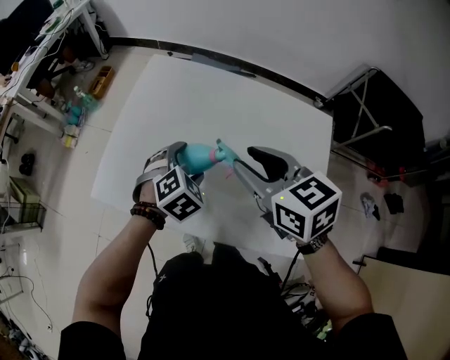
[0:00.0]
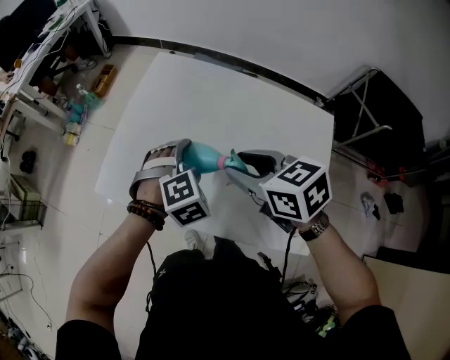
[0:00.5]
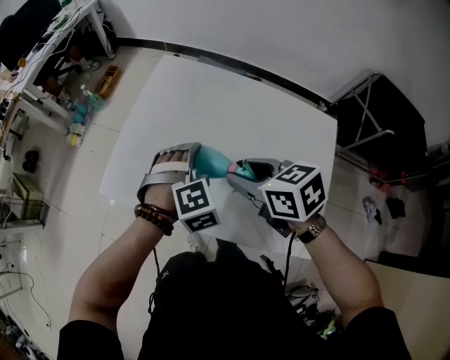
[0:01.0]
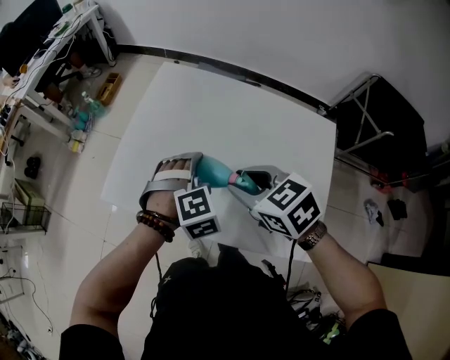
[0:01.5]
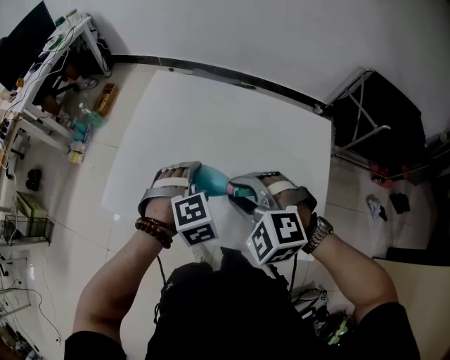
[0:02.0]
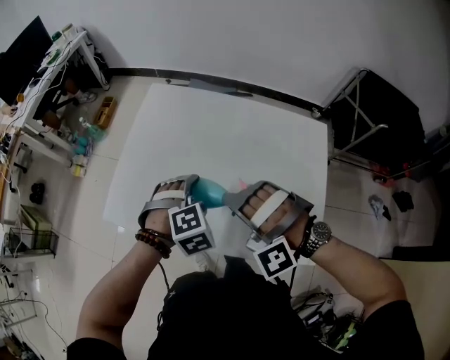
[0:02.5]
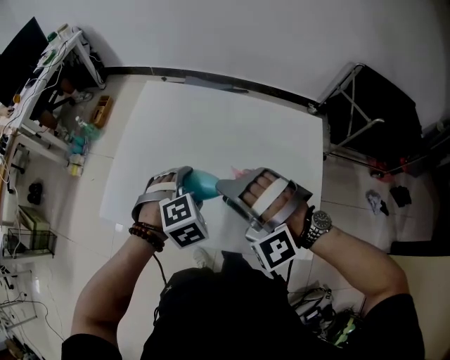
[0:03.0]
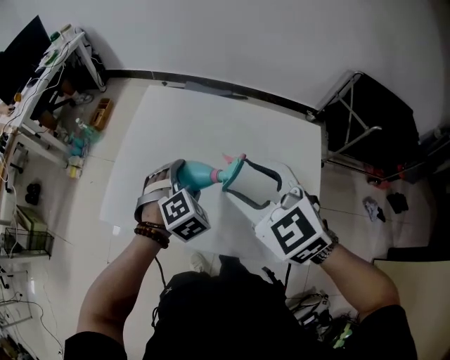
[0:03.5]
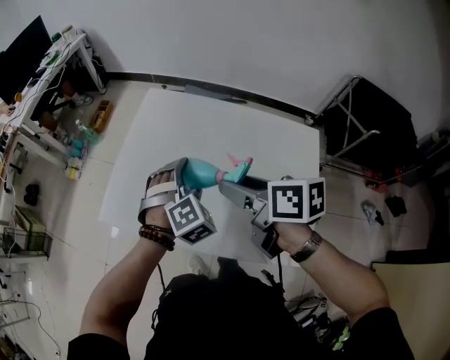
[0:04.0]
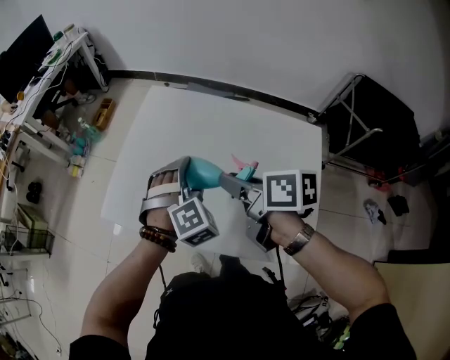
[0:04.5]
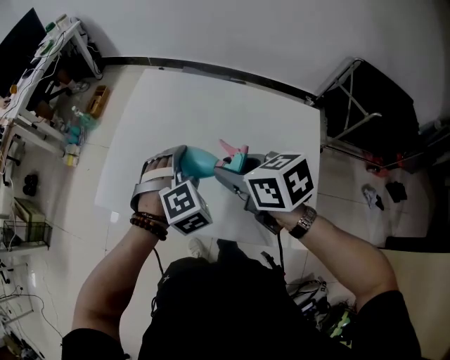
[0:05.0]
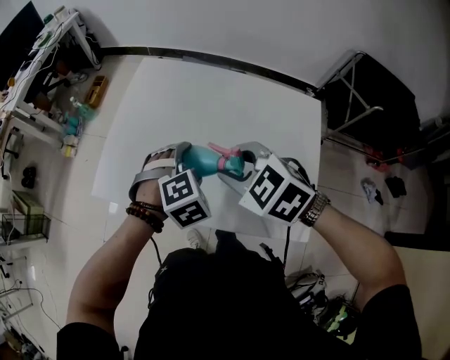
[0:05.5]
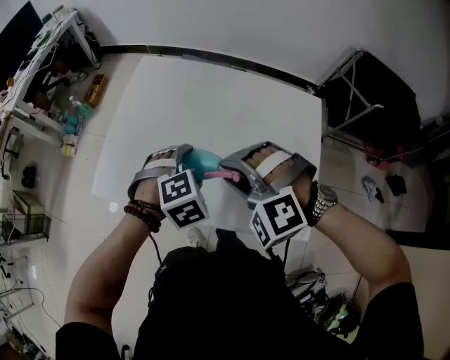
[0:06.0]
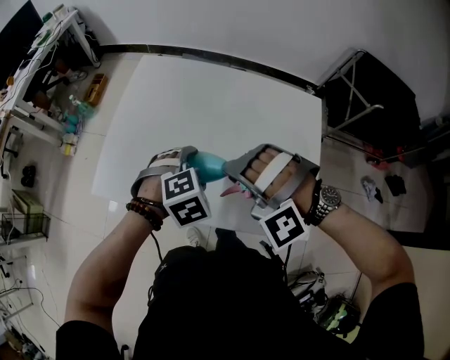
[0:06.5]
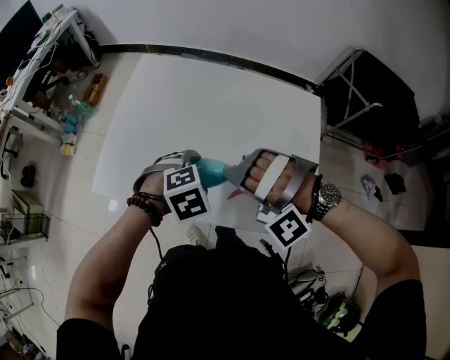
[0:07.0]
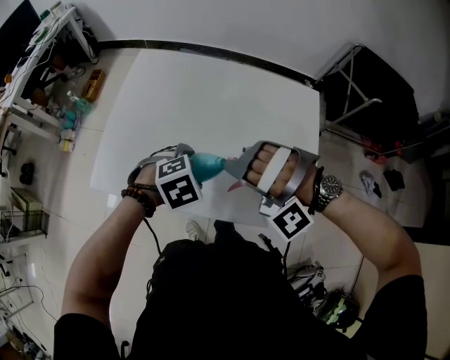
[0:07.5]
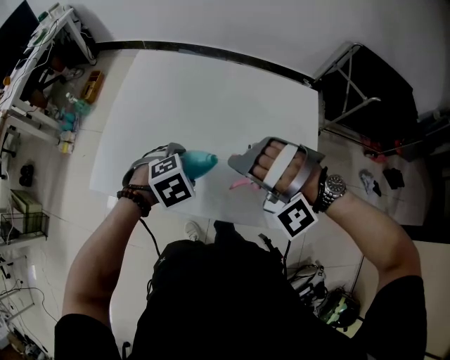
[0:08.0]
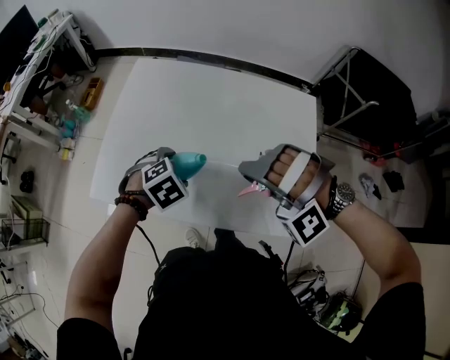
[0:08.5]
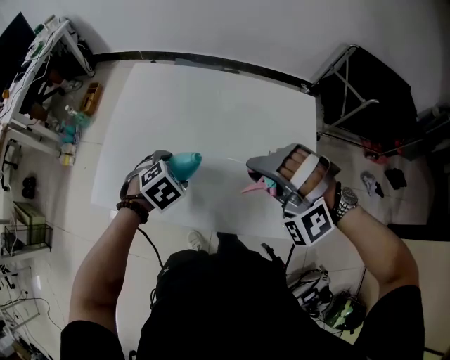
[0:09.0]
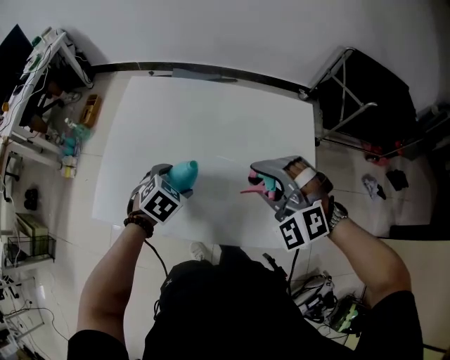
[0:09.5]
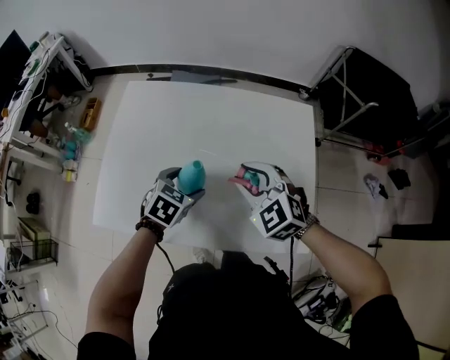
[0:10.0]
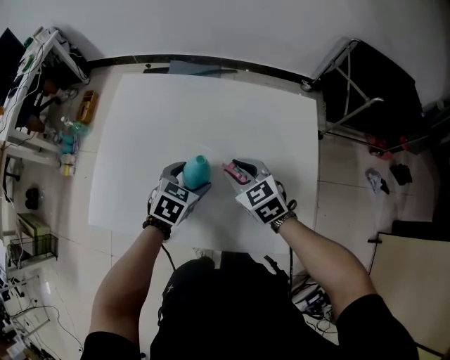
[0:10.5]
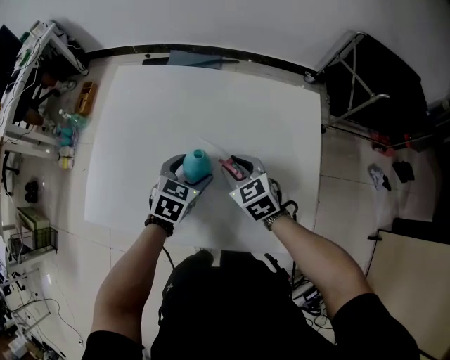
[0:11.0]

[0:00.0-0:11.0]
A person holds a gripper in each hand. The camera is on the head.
0:00.0 to 0:02.0: The right gripper travels to the left, downward and backward by approximately 10 cm, and twists about 60 degrees counterclockwise, seen from behind; the left gripper rotates about 20 degrees.
0:02.0 to 0:03.5: The right gripper shifts about 10 cm upward, swivels roughly 40 degrees, and opens.
0:03.5 to 0:05.5: The left gripper moves about 5 cm, while the right gripper travels downward by about 5 cm, changes its angle by approximately 20 degrees, and closes its fingers.
0:05.5 to 0:07.5: The right gripper moves some 5 cm, and rotates around the line of its fingers by approximately 80 degrees, counterclockwise from behind. Meanwhile the left gripper ends up approximately 5 cm from where it was, and turns by some 20 degrees.
0:07.5 to 0:09.0: The right gripper changes place by about 5 cm, and rotates some 20 degrees. The left gripper shifts some 5 cm to the left.
0:09.0 to 0:11.0: The right gripper is displaced downward and forward by approximately 20 cm, and rolls clockwise, seen from behind, by about 90 degrees, while the left gripper moves to the right and forward, about 10 cm, and changes its angle by roughly 30 degrees.

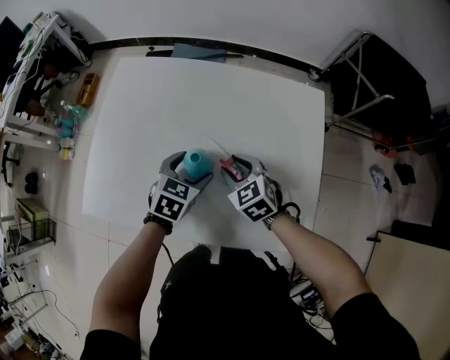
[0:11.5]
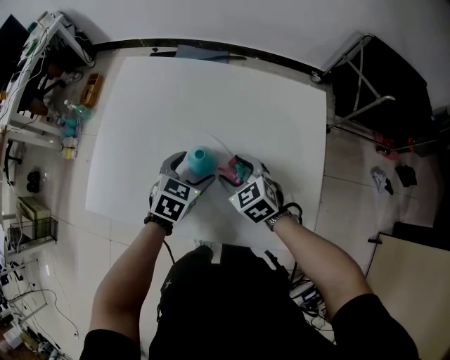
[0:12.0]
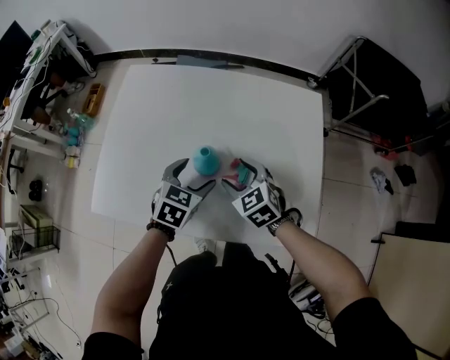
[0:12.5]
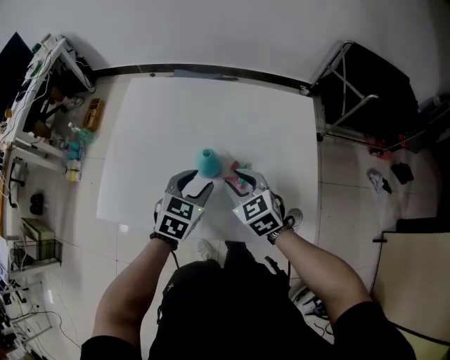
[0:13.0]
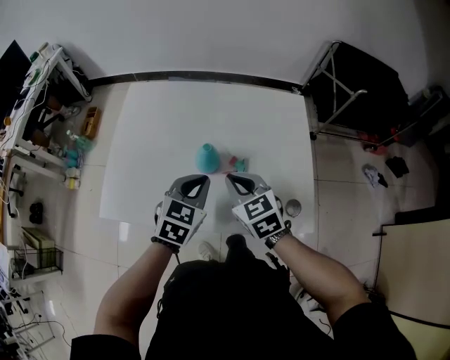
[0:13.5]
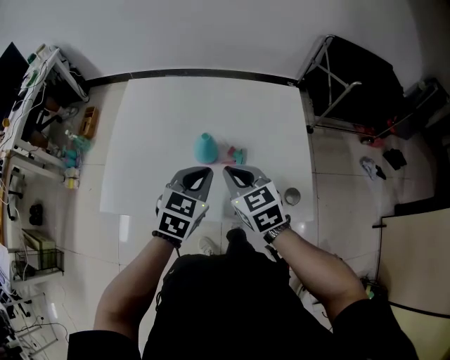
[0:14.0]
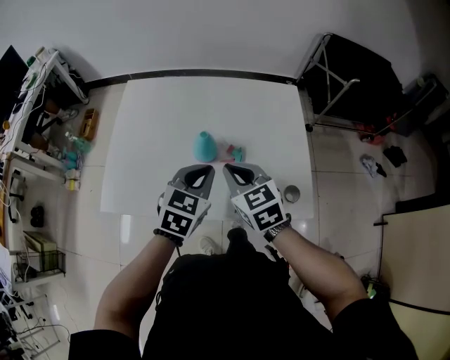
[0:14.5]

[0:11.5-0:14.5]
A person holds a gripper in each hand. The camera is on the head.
0:11.5 to 0:13.0: The two grippers go about 5 cm upward. The left gripper closes its fingers. The right gripper opens, then closes once more.
0:13.0 to 0:14.5: The grippers both shift upward by about 5 cm. The right gripper closes, while the left gripper closes.

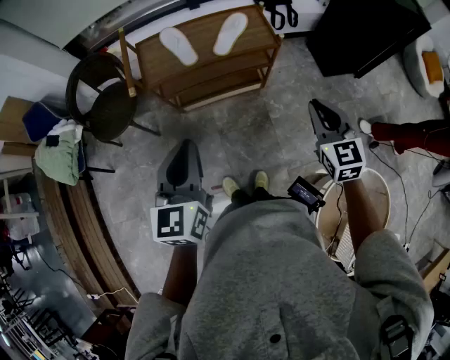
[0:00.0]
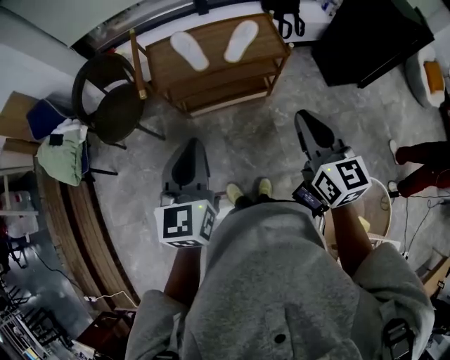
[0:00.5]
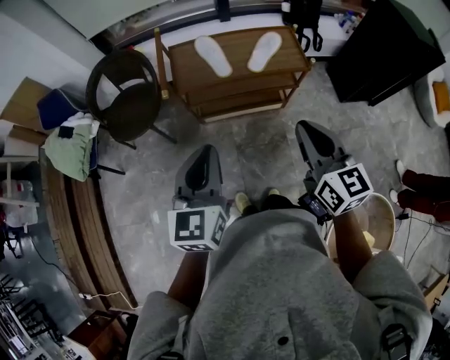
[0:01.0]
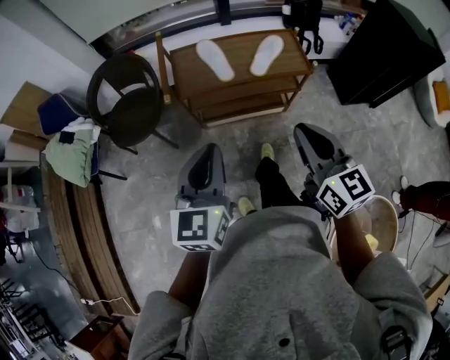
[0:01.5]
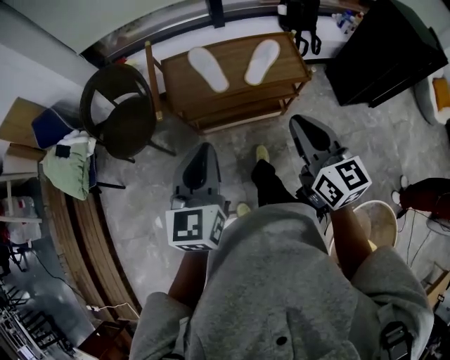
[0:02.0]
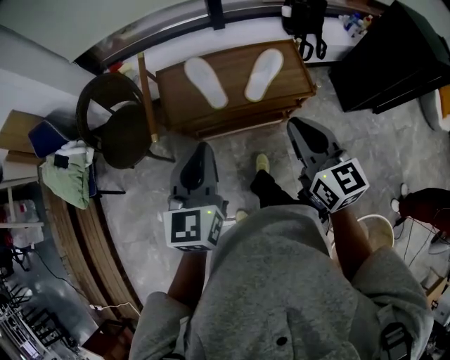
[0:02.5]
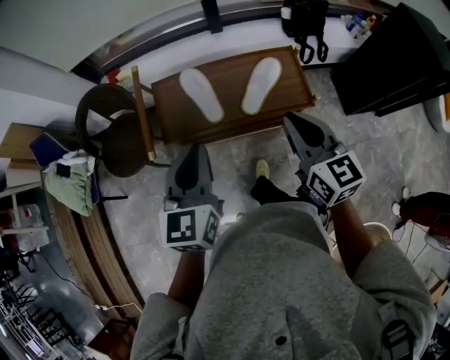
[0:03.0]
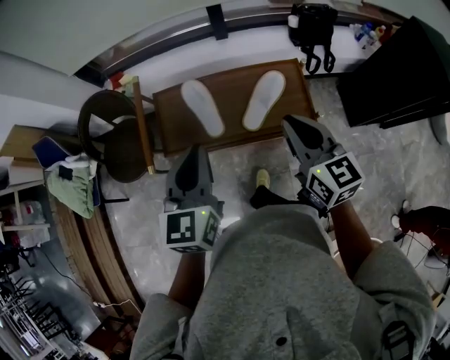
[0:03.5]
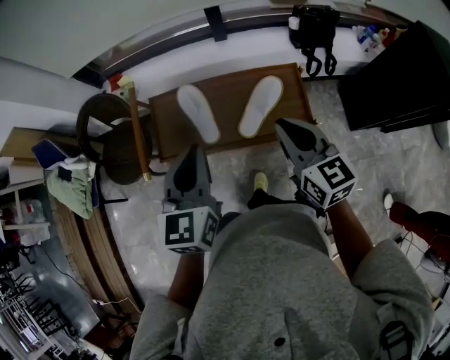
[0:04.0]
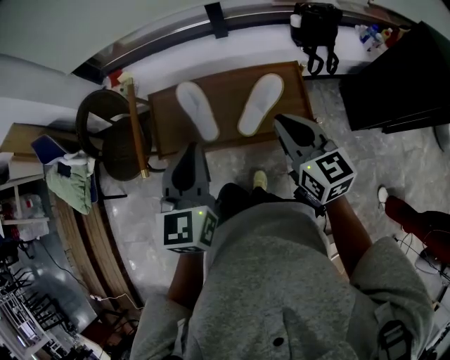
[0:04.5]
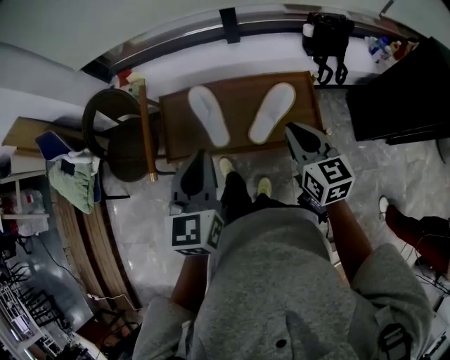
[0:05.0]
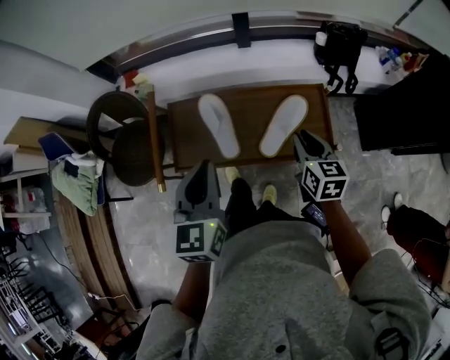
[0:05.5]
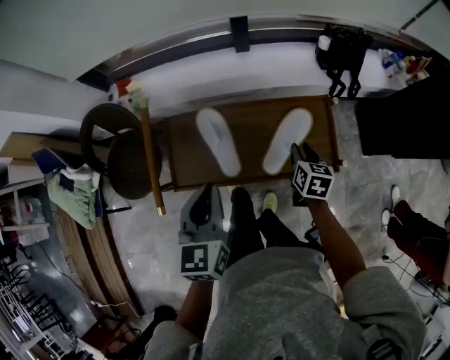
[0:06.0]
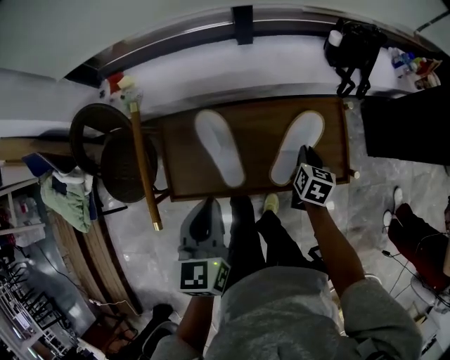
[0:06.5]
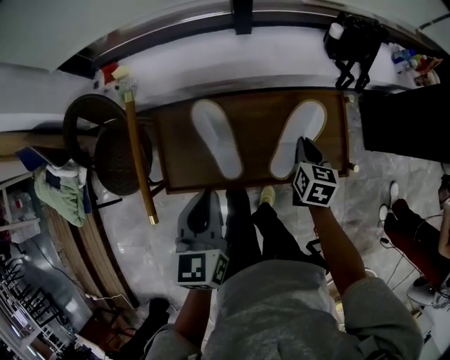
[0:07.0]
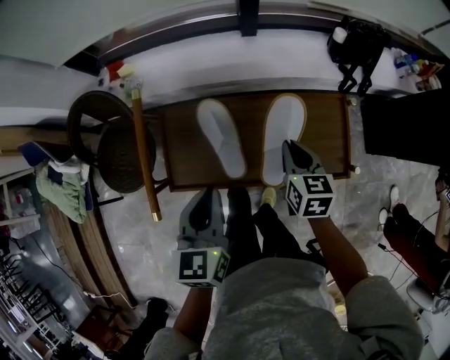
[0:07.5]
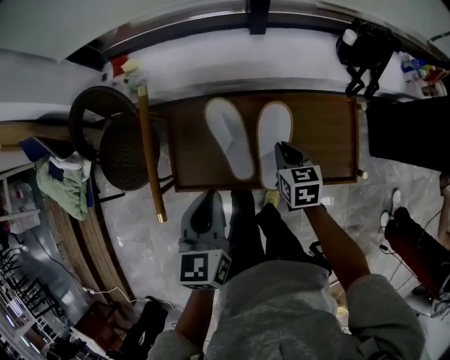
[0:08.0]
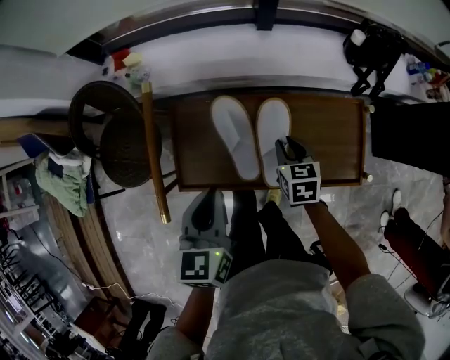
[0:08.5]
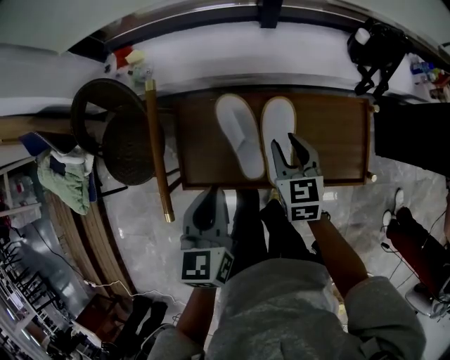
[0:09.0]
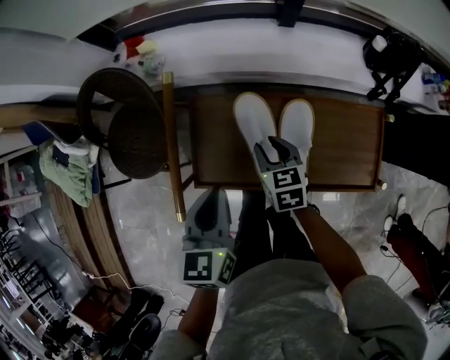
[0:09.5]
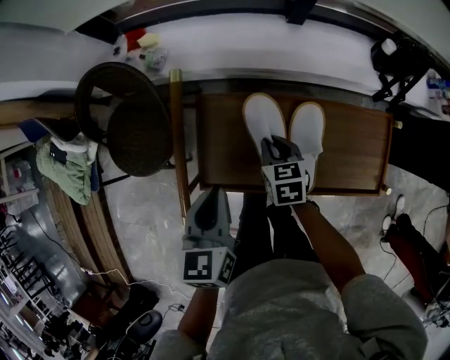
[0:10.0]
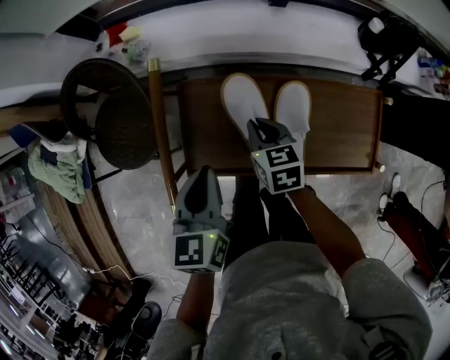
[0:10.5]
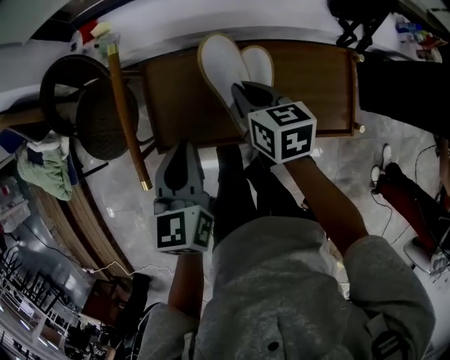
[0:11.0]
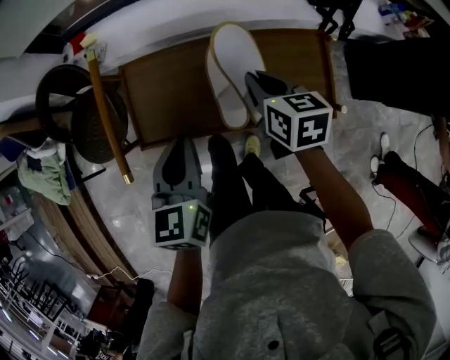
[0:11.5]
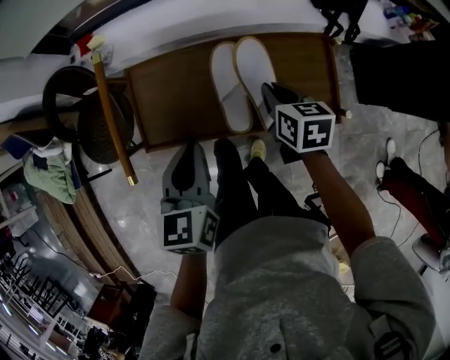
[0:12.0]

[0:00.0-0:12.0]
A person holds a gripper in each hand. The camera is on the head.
0:00.0 to 0:02.0: The left gripper is displaced forward by about 10 cm. The right gripper shifts about 20 cm to the left and forward, and rotates approximately 30 degrees.
0:02.0 to 0:04.0: The two grippers go roughly 25 cm forward and to the right.
0:04.0 to 0:06.0: The right gripper shifts roughly 25 cm downward and forward, turns by about 40 degrees, and opens. Meanwhile the left gripper travels downward, forward and to the left by roughly 10 cm.
0:06.0 to 0:08.0: The right gripper heads to the left, covering roughly 10 cm, turns by roughly 20 degrees, and closes. Meanwhile the left gripper travels downward by roughly 5 cm.
0:08.0 to 0:10.0: The right gripper shifts some 15 cm to the left. The left gripper moves to the left, some 10 cm.
0:10.0 to 0:12.0: The left gripper heads to the right and backward, covering some 15 cm, while the right gripper is displaced to the right, upward and backward by some 20 cm.
